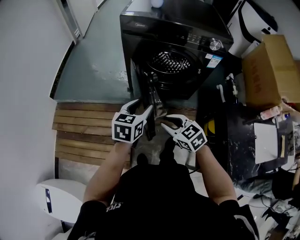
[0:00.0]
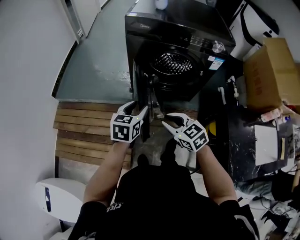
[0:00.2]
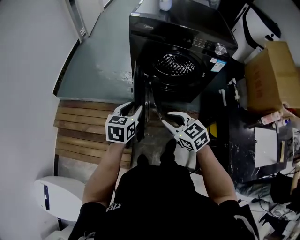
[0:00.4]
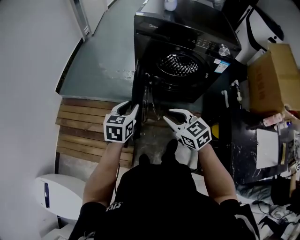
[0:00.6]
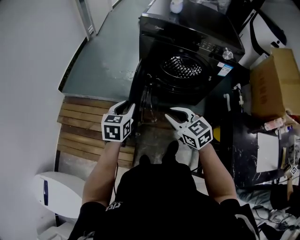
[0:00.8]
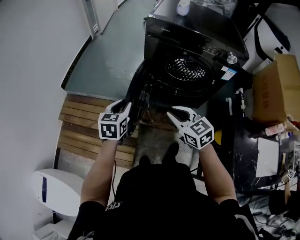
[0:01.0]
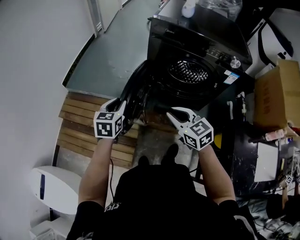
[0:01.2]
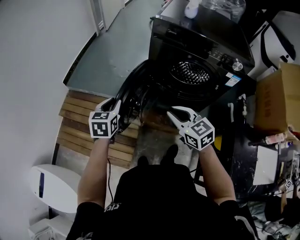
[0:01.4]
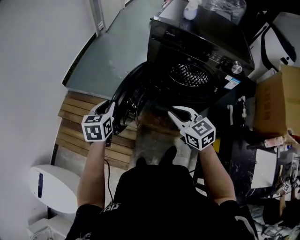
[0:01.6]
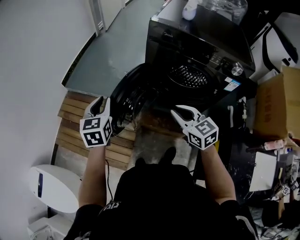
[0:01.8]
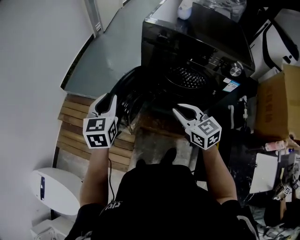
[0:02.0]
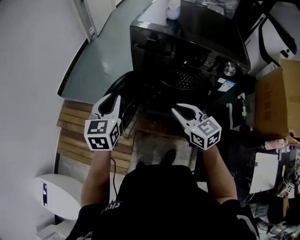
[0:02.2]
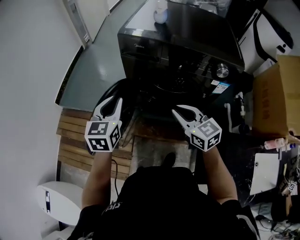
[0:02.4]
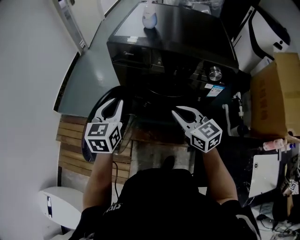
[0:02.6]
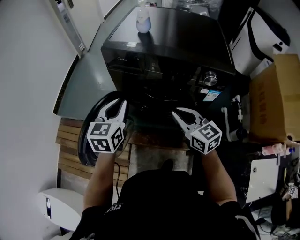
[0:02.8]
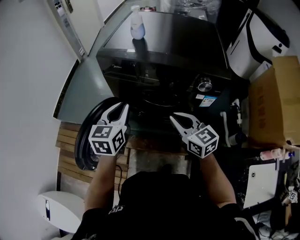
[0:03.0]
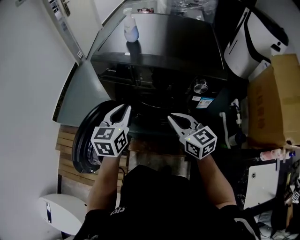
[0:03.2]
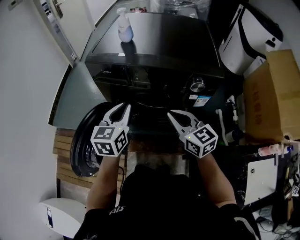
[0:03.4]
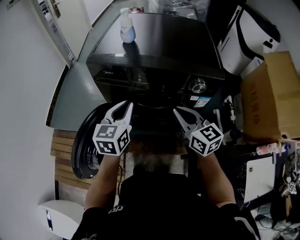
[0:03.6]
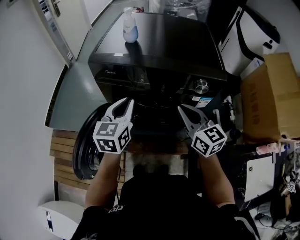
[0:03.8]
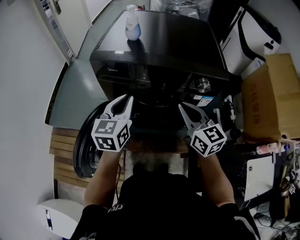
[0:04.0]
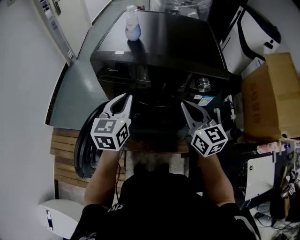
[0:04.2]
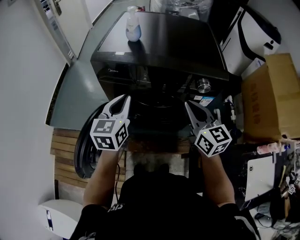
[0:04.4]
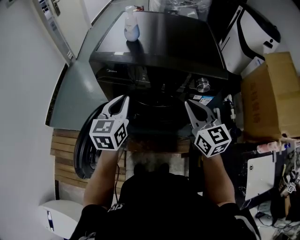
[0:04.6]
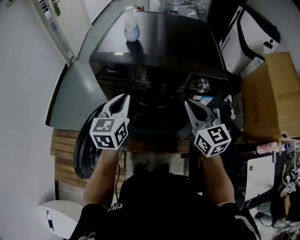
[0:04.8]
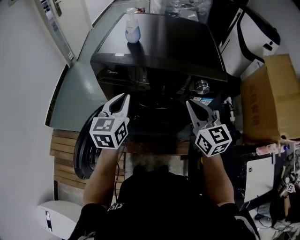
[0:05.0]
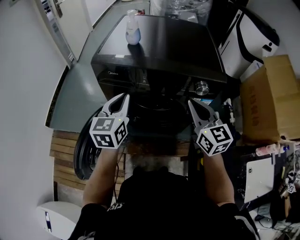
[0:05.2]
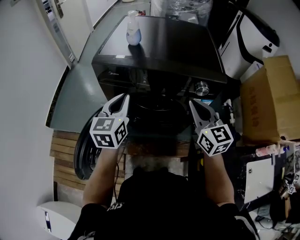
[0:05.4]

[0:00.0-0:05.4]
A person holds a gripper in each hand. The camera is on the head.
0:00.0 to 0:01.4: The left gripper shifts some 20 cm to the left, turns by roughly 20 degrees, and closes up. Meanwhile the right gripper is displaced upward and forward by some 10 cm.
0:01.4 to 0:02.8: The right gripper heads to the right and forward, covering some 25 cm. Meanwhile the left gripper shifts roughly 30 cm to the right and upward.
0:02.8 to 0:04.0: The right gripper shifts roughly 5 cm upward and to the right. The left gripper is displaced to the right by roughly 5 cm.
0:04.0 to 0:05.4: There are only small adjustments of the grippers.

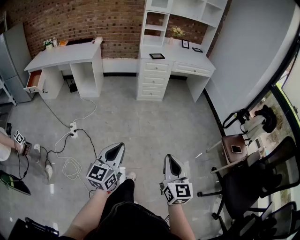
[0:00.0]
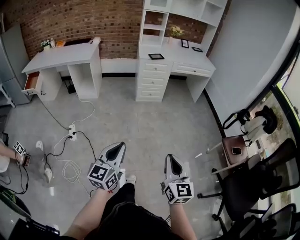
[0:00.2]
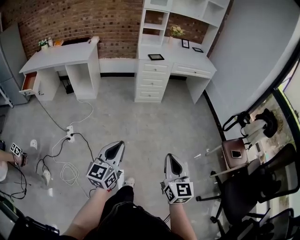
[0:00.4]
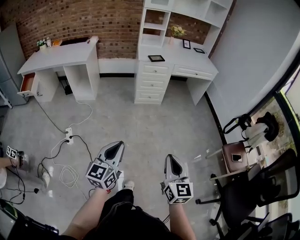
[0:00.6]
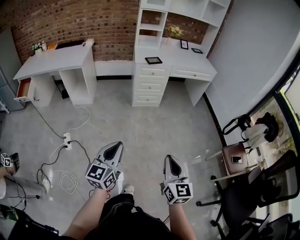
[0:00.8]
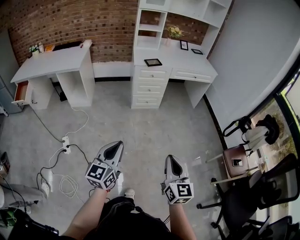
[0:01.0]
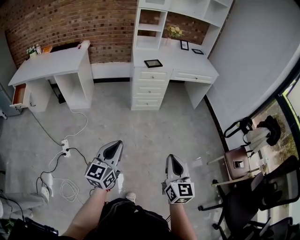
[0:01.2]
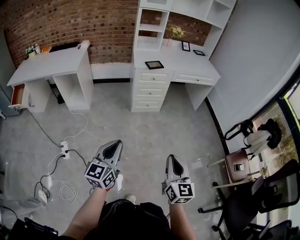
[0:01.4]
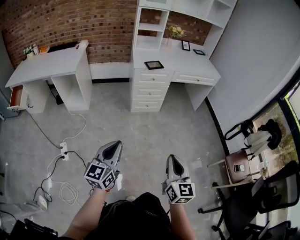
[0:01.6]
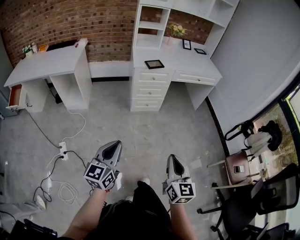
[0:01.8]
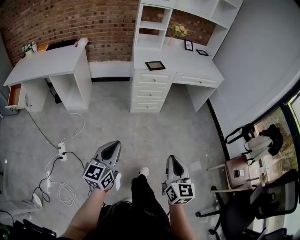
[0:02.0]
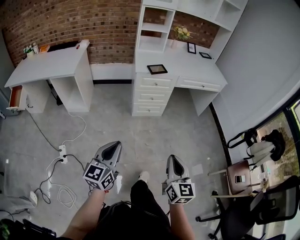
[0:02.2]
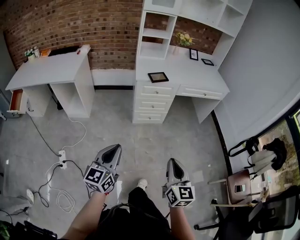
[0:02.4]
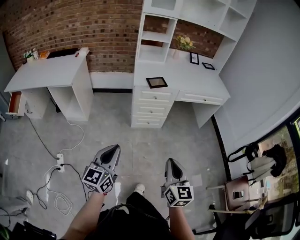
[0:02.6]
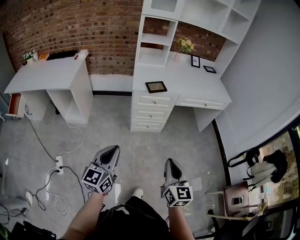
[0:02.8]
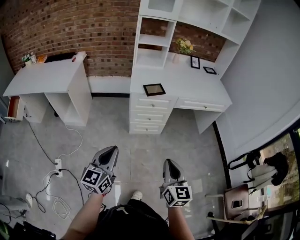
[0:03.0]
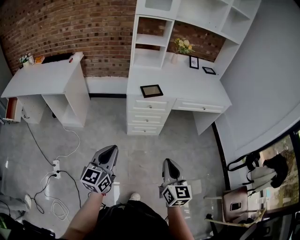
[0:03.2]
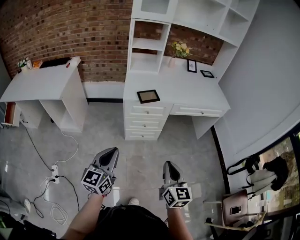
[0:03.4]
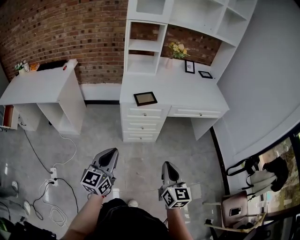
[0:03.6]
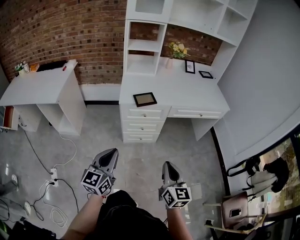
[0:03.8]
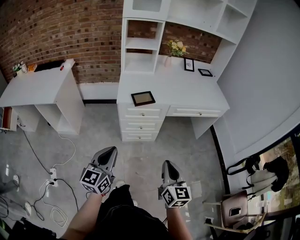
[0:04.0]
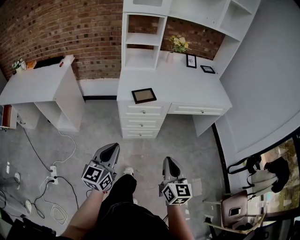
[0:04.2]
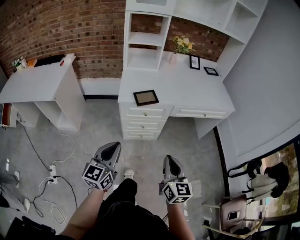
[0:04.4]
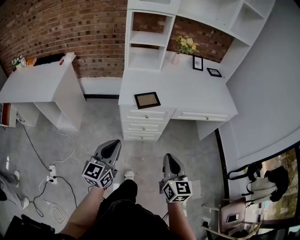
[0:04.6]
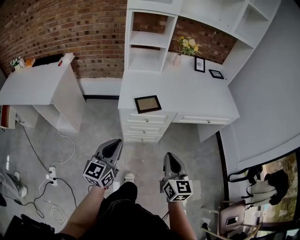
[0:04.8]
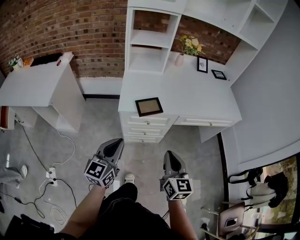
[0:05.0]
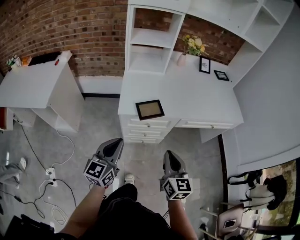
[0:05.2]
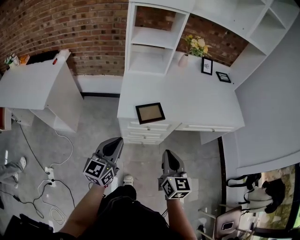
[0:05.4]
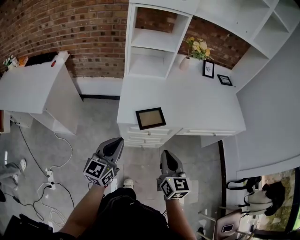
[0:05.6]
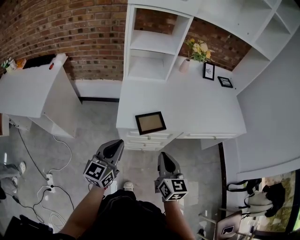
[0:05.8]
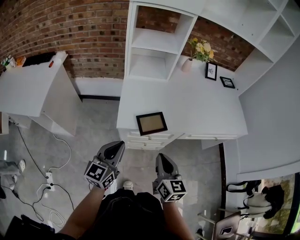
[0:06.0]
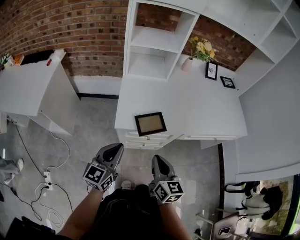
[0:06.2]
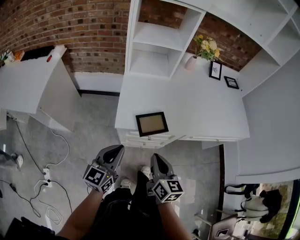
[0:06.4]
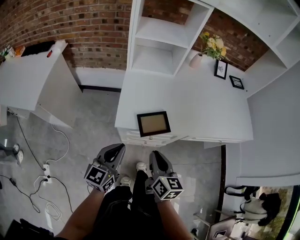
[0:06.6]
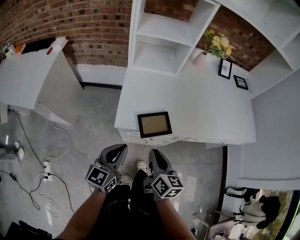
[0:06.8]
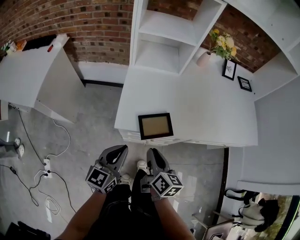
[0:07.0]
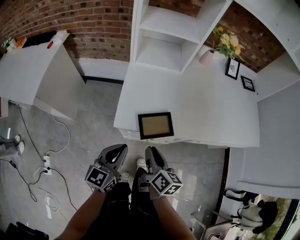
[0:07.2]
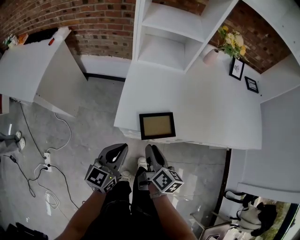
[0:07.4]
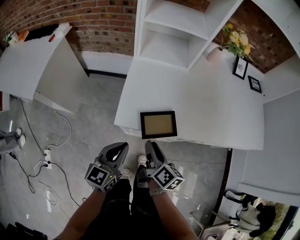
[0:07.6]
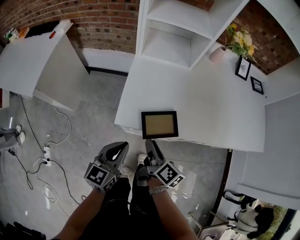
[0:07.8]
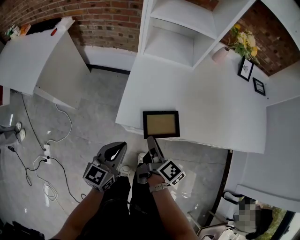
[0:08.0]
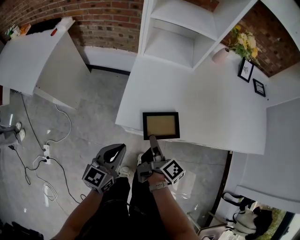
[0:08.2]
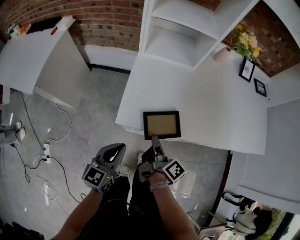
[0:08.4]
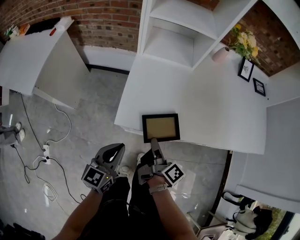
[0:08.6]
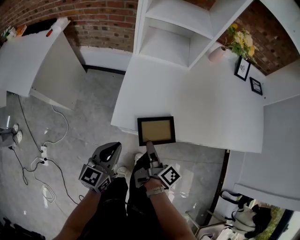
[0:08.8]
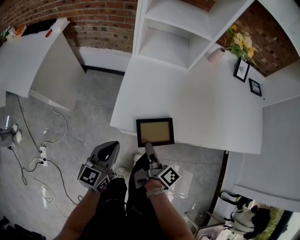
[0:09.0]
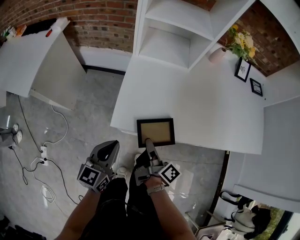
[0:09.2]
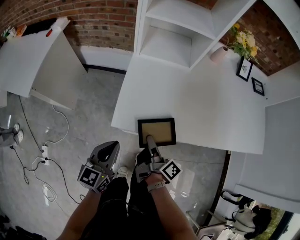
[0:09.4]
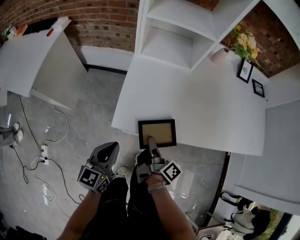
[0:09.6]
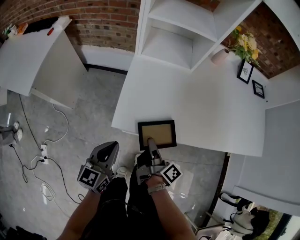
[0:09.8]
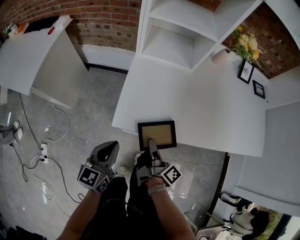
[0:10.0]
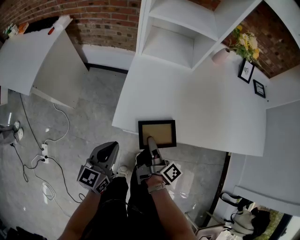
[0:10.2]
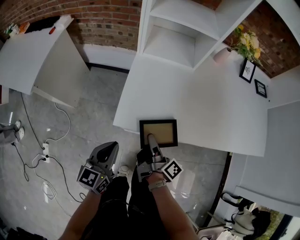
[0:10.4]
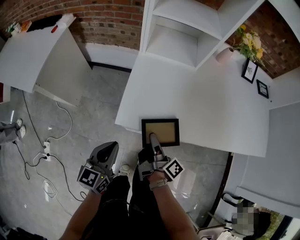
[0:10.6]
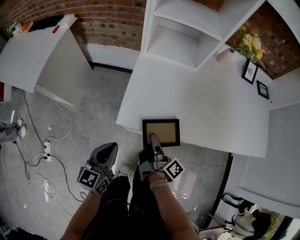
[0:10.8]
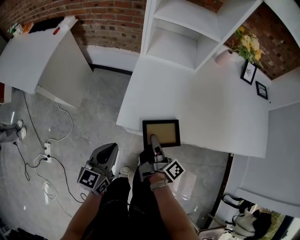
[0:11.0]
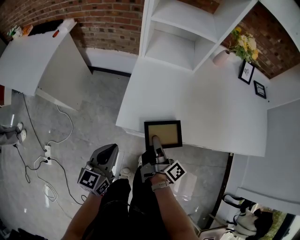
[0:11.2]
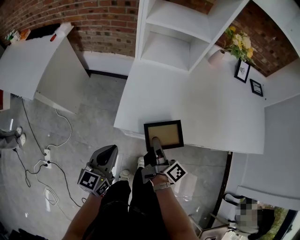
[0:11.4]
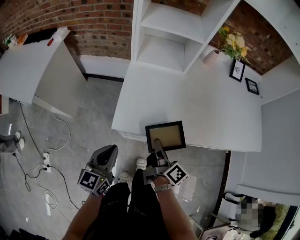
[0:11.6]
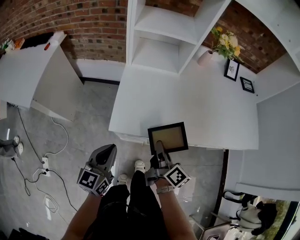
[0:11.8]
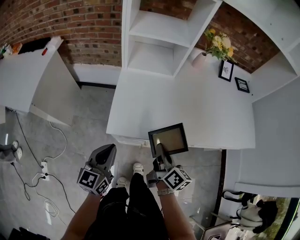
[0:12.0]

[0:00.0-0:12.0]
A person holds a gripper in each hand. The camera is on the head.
0:00.0 to 0:01.6: Both grippers move forward, about 30 cm.
0:01.6 to 0:03.0: The grippers both shift forward by roughly 25 cm.
0:03.0 to 0:04.4: The grippers both shift forward by approximately 15 cm.
0:04.4 to 0:06.0: The two grippers go approximately 25 cm forward.
0:06.0 to 0:07.6: The right gripper goes approximately 15 cm downward and forward, swivels approximately 40 degrees, and opens its fingers. The left gripper is displaced downward by some 10 cm.
0:07.6 to 0:09.0: The right gripper swivels roughly 30 degrees.
0:09.0 to 0:10.4: The grippers make only small movements.
0:10.4 to 0:12.0: The right gripper travels to the right and upward by about 10 cm, rotates some 40 degrees, and closes up.

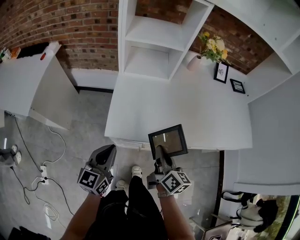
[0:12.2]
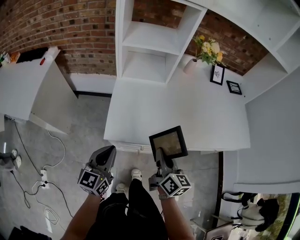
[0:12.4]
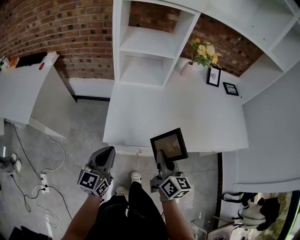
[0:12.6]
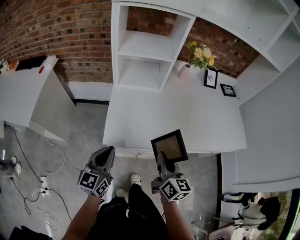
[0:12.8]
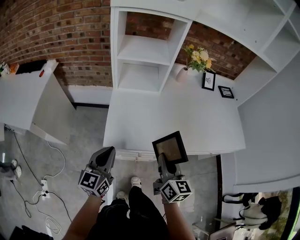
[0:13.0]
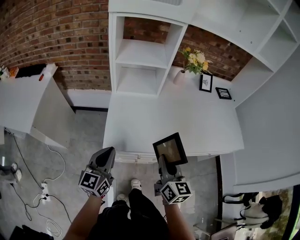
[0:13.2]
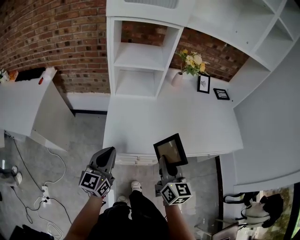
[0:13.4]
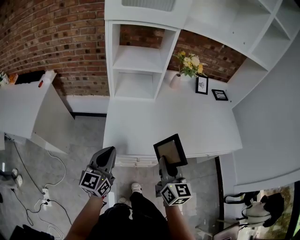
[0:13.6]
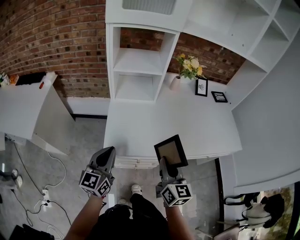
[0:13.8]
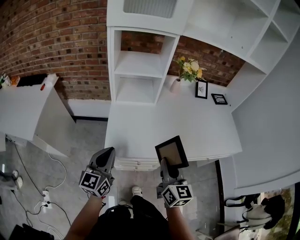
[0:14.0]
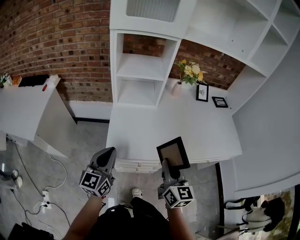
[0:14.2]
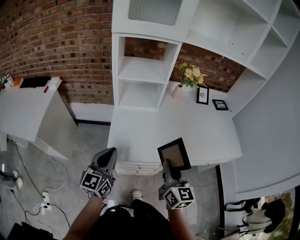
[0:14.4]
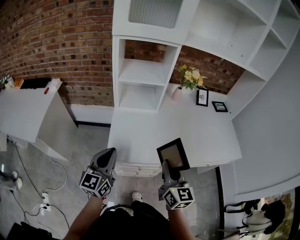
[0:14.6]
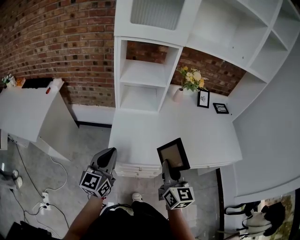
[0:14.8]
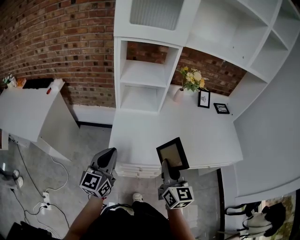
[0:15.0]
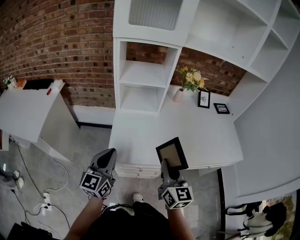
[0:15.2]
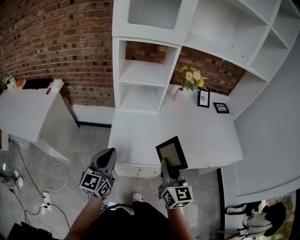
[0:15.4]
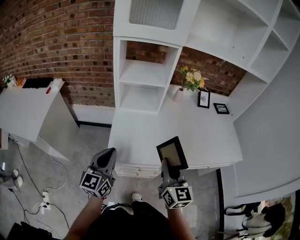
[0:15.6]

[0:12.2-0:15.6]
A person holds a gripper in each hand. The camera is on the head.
0:12.2 to 0:13.8: Both grippers travel together upward, some 10 cm. The right gripper changes its angle by some 30 degrees.
0:13.8 to 0:15.6: The grippers move only a little.

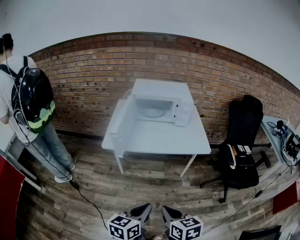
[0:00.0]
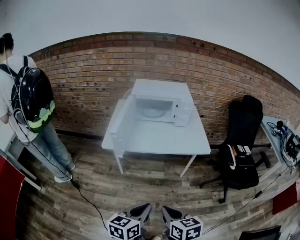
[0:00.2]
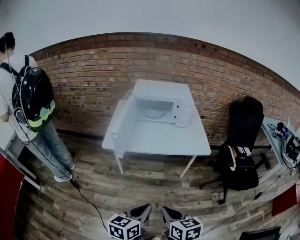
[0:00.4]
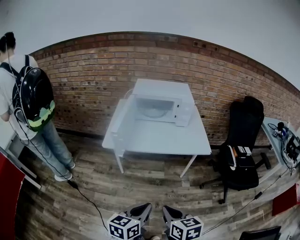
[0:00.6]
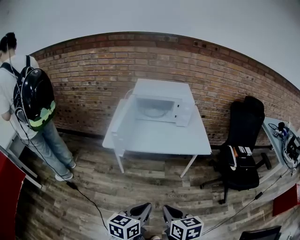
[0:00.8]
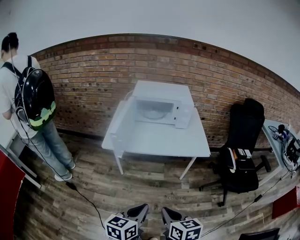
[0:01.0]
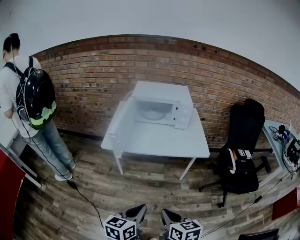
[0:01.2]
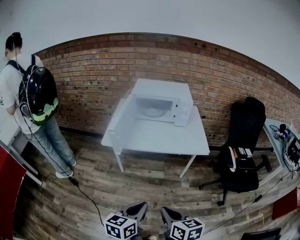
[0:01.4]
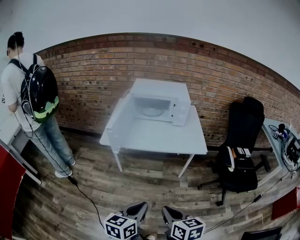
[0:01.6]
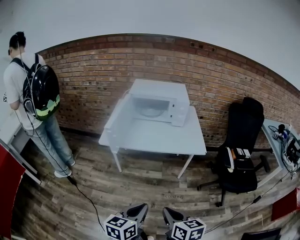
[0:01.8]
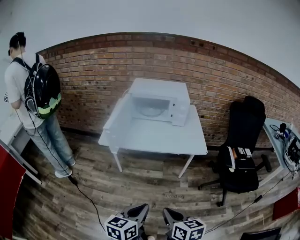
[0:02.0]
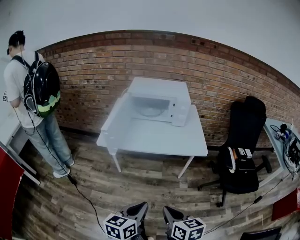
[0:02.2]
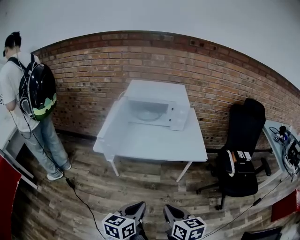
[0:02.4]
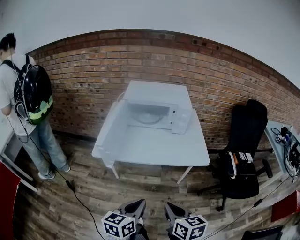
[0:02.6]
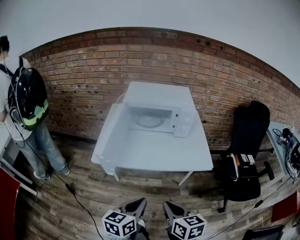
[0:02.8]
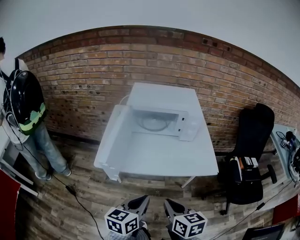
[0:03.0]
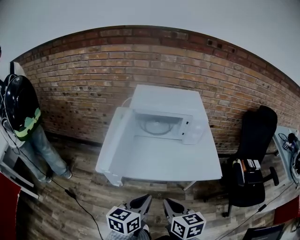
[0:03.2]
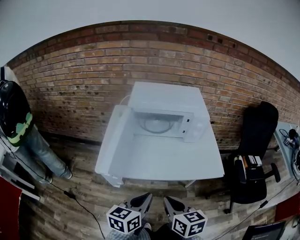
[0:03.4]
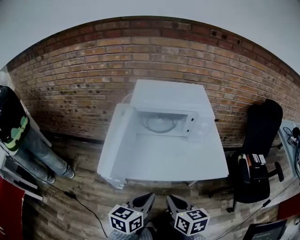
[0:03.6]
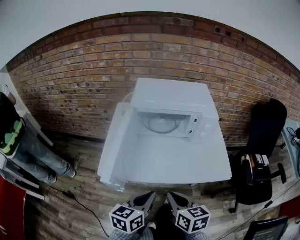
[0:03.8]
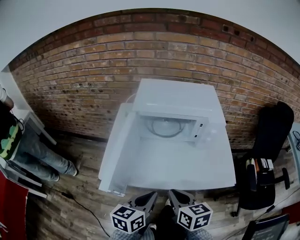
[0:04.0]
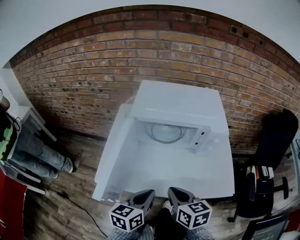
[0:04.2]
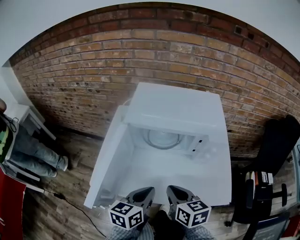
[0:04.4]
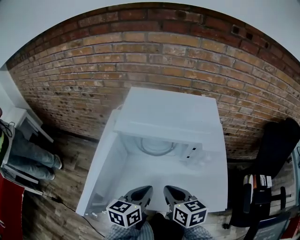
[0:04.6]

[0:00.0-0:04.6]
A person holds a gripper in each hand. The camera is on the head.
0:00.0 to 0:01.6: The right gripper moves to the right, some 5 cm.
0:01.6 to 0:03.0: The two grippers go approximately 25 cm forward.
0:03.0 to 0:04.6: Both grippers travel together forward, approximately 30 cm.
